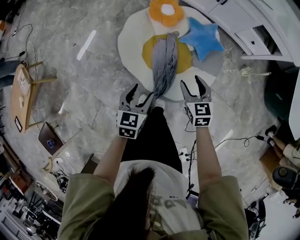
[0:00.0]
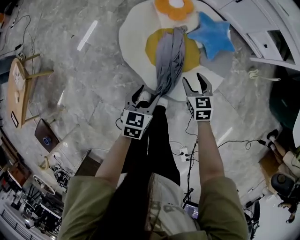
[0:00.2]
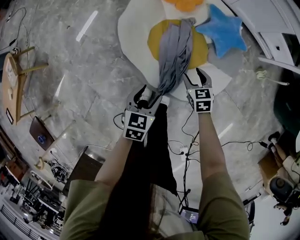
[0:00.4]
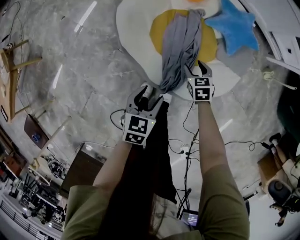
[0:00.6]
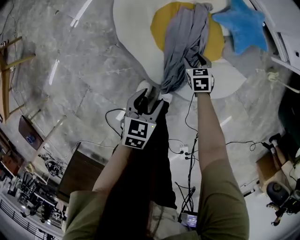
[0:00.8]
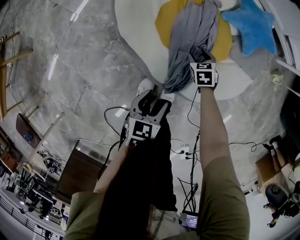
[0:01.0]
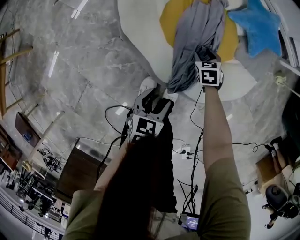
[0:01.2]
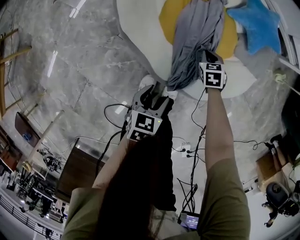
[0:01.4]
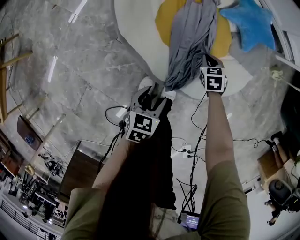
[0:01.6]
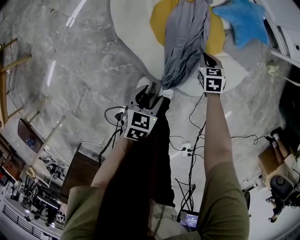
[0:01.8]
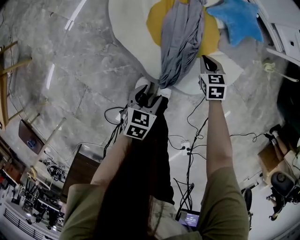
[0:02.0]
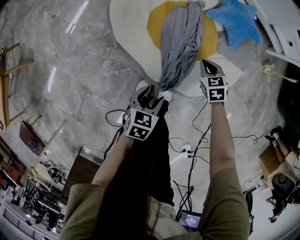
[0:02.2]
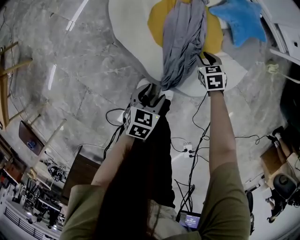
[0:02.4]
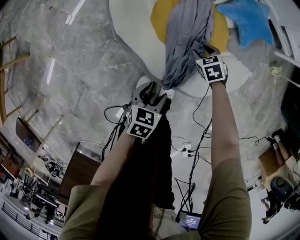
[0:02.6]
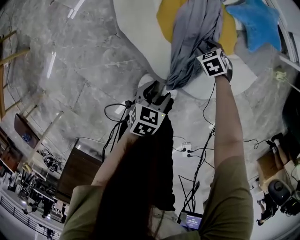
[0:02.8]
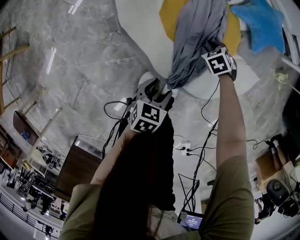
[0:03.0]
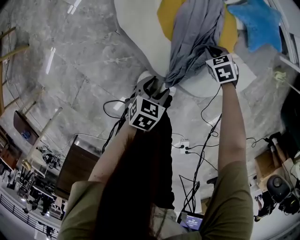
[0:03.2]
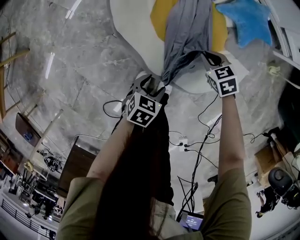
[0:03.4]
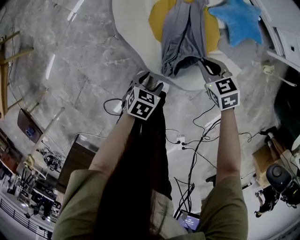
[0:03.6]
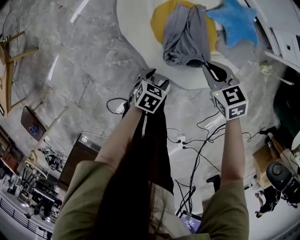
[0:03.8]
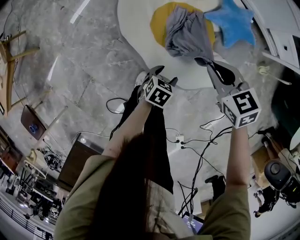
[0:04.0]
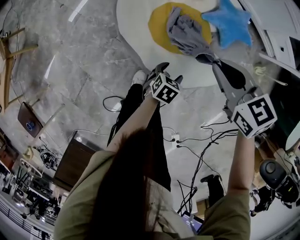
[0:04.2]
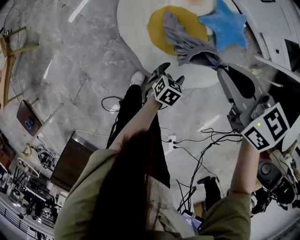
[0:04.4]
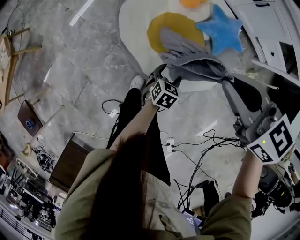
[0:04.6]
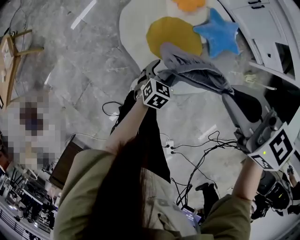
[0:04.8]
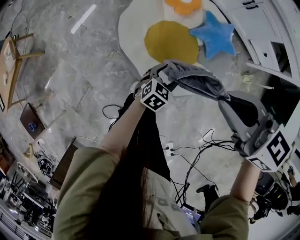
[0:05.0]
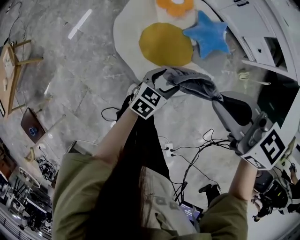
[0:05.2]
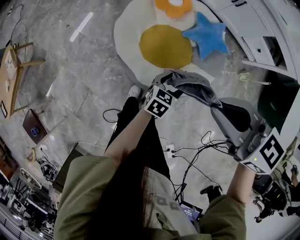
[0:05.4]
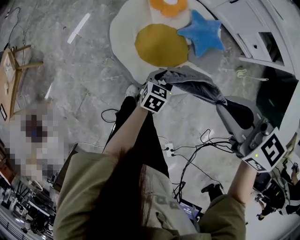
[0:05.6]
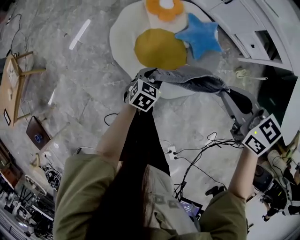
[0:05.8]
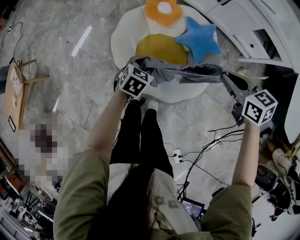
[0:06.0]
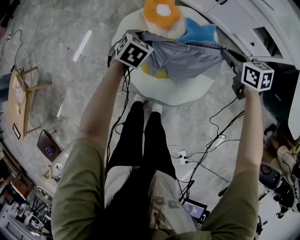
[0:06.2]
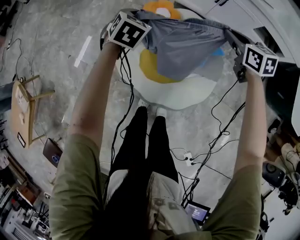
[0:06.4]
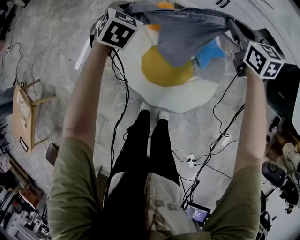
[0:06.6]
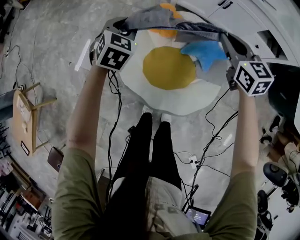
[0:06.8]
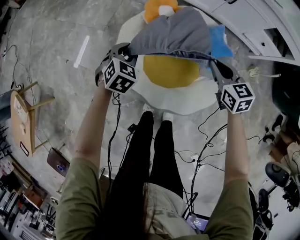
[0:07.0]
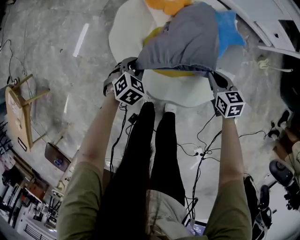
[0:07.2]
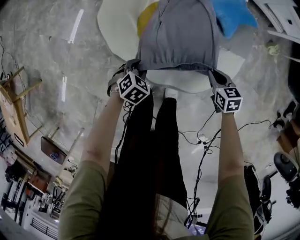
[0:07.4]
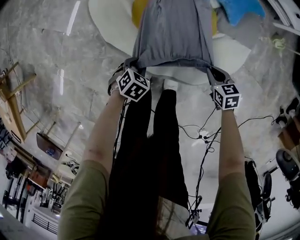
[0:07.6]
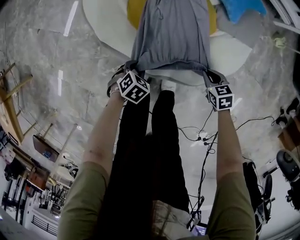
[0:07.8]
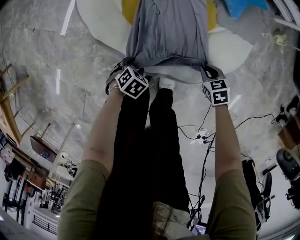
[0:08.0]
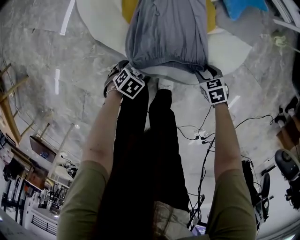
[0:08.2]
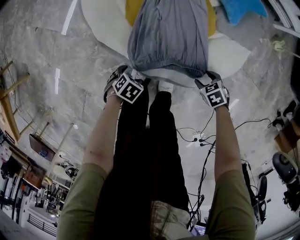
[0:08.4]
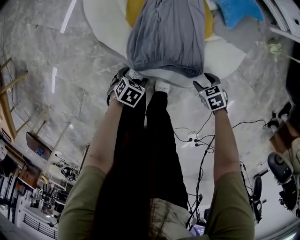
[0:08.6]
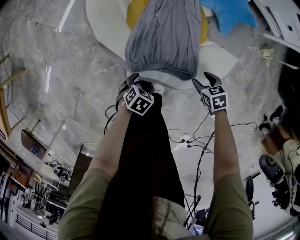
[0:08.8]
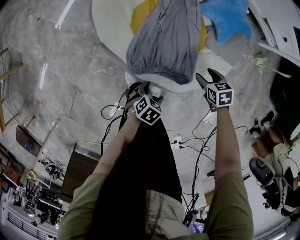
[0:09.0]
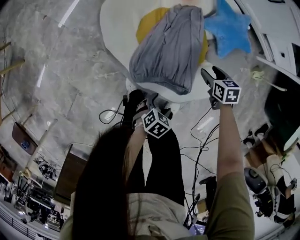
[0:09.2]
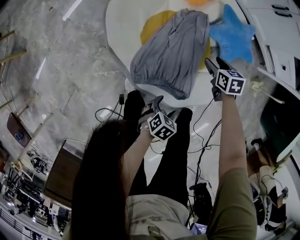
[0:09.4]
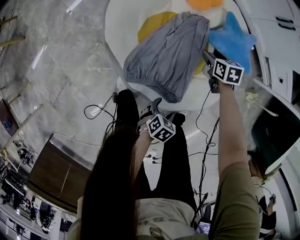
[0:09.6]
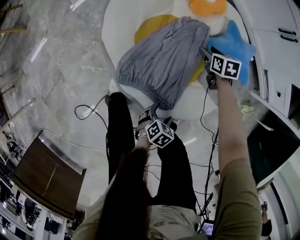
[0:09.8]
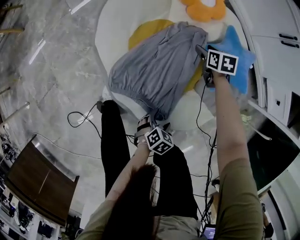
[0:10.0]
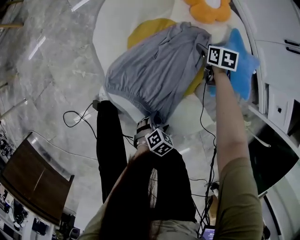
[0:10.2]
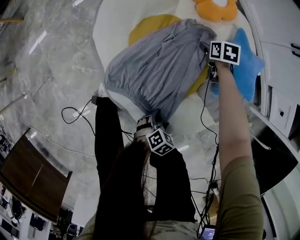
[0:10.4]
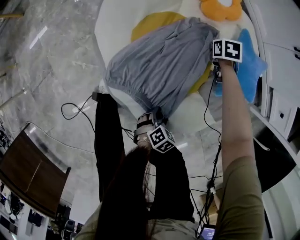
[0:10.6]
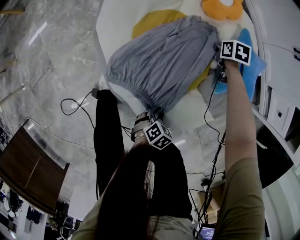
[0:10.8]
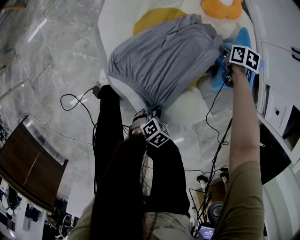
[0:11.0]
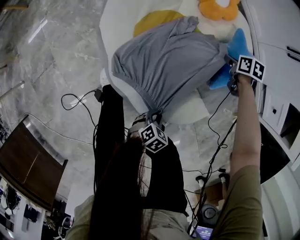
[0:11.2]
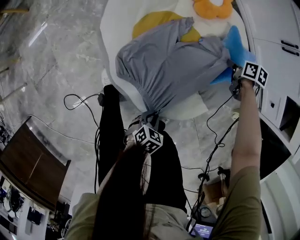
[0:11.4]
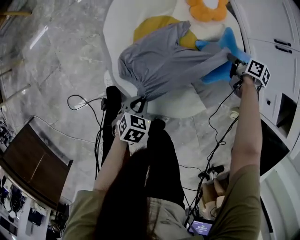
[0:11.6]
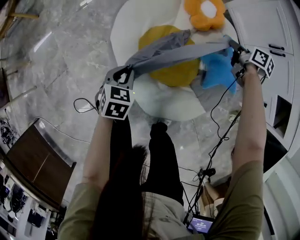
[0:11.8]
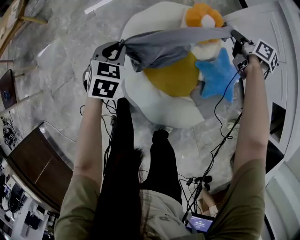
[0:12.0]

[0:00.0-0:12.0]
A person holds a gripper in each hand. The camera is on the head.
0:00.0 to 0:01.6: The two grippers go some 35 cm downward. The right gripper swivels approximately 30 degrees, and closes its fingers.
0:01.6 to 0:03.0: The right gripper ends up approximately 5 cm from where it was, and turns by approximately 30 degrees; the left gripper shifts by roughly 5 cm.
0:03.0 to 0:04.4: The left gripper changes place by about 20 cm; the right gripper is displaced upward by approximately 50 cm, and points its fingers roughly 40 degrees further upward.
0:04.4 to 0:06.0: The right gripper shifts approximately 15 cm to the right; the left gripper heads upward and forward, covering roughly 20 cm, and closes its fingers.
0:06.0 to 0:07.6: The right gripper goes up and down, roughly 50 cm each way, reversing 2 times; the left gripper is displaced downward by some 35 cm, and turns by approximately 30 degrees.
0:07.6 to 0:09.0: The right gripper travels downward and back again, approximately 10 cm each way, and opens. Meanwhile the left gripper goes downward and returns, some 5 cm each way, turns by roughly 20 degrees, and opens.
0:09.0 to 0:10.4: The right gripper changes place by about 35 cm; the left gripper shifts by some 20 cm, and swivels some 20 degrees.
0:10.4 to 0:12.0: The right gripper travels upward by about 35 cm, tilts its fingers approximately 30 degrees upward, and closes; the left gripper shifts by approximately 60 cm, swivels about 40 degrees, and closes its fingers.

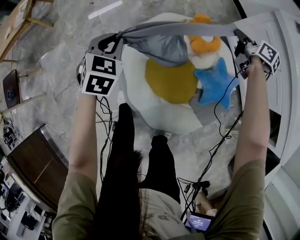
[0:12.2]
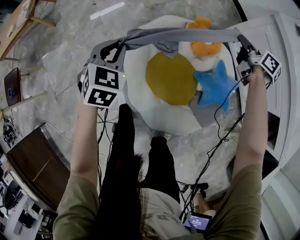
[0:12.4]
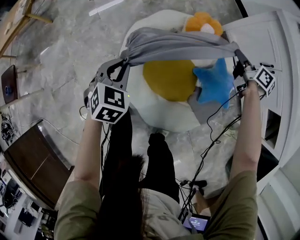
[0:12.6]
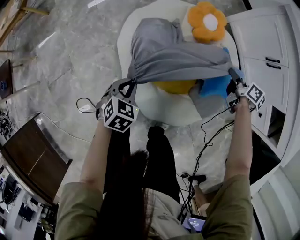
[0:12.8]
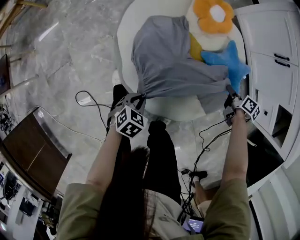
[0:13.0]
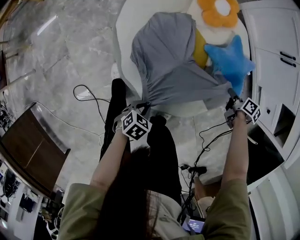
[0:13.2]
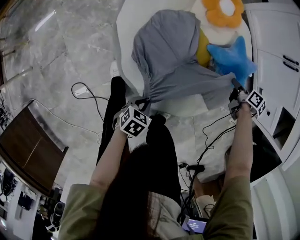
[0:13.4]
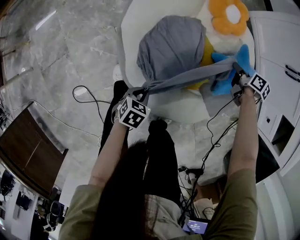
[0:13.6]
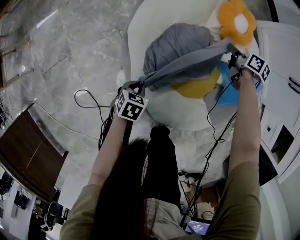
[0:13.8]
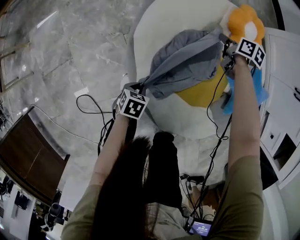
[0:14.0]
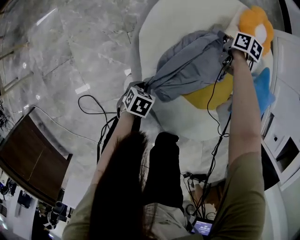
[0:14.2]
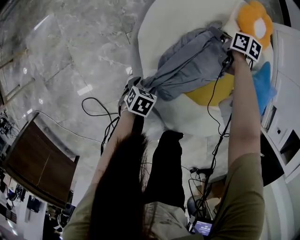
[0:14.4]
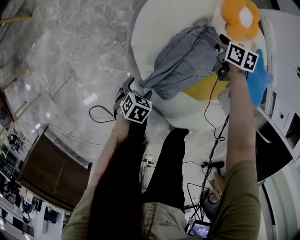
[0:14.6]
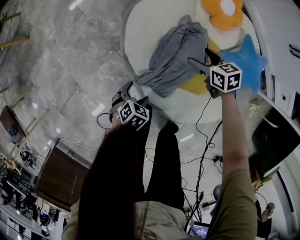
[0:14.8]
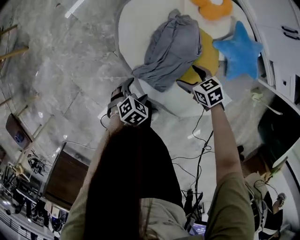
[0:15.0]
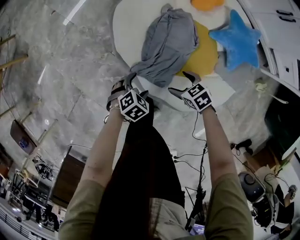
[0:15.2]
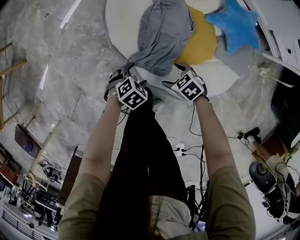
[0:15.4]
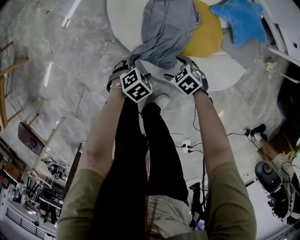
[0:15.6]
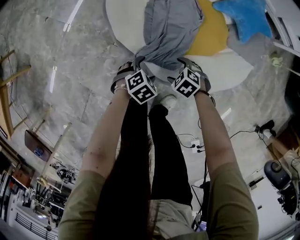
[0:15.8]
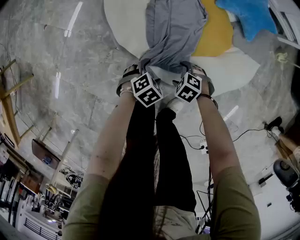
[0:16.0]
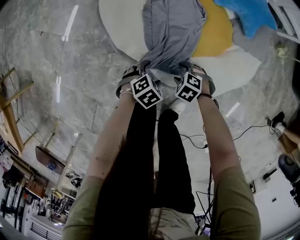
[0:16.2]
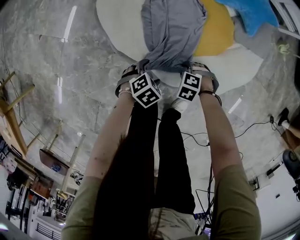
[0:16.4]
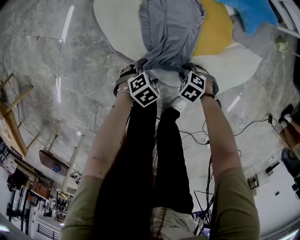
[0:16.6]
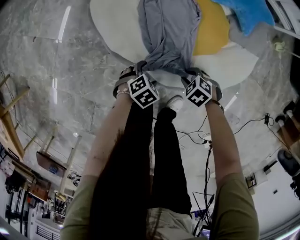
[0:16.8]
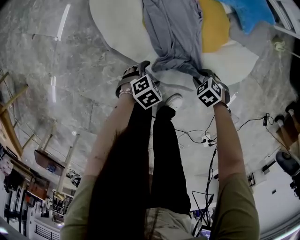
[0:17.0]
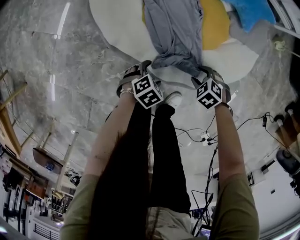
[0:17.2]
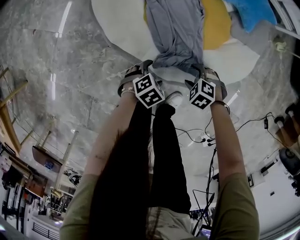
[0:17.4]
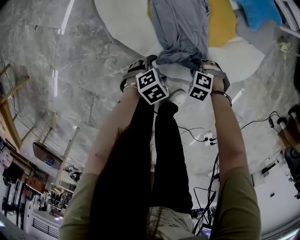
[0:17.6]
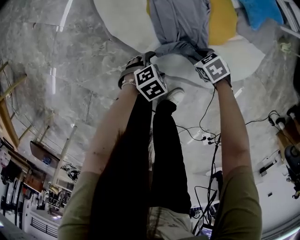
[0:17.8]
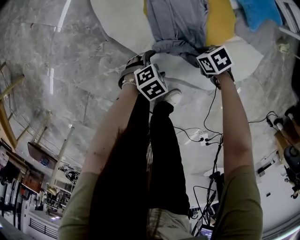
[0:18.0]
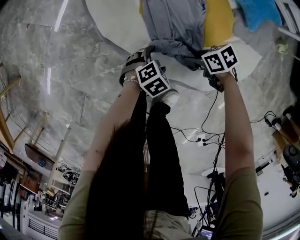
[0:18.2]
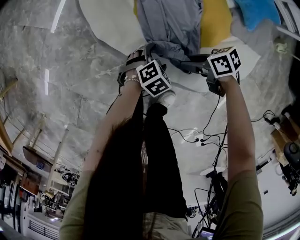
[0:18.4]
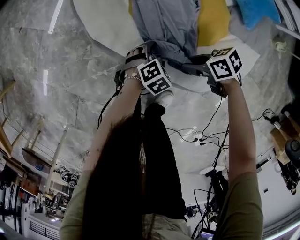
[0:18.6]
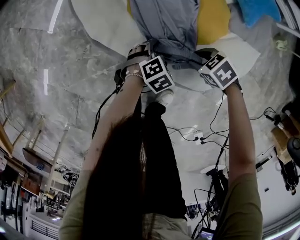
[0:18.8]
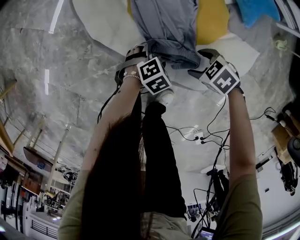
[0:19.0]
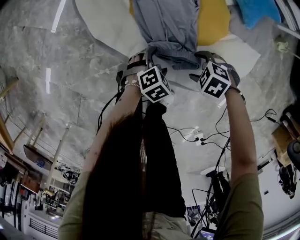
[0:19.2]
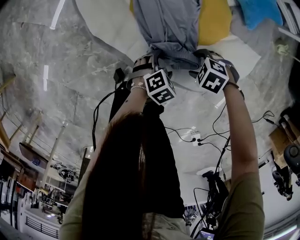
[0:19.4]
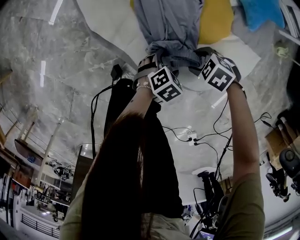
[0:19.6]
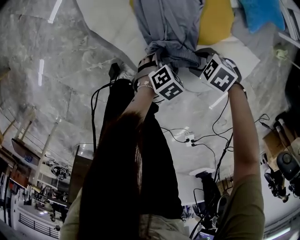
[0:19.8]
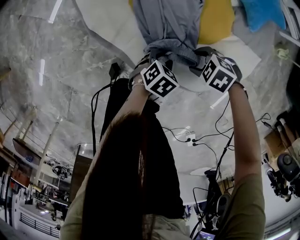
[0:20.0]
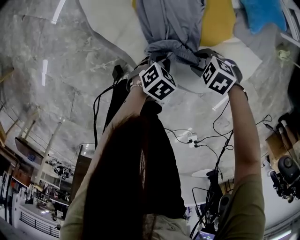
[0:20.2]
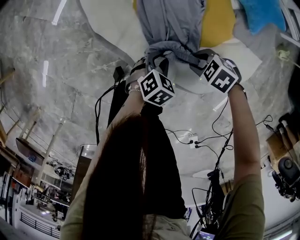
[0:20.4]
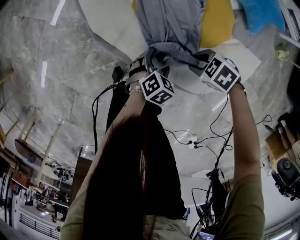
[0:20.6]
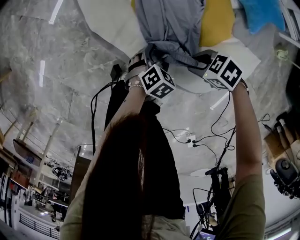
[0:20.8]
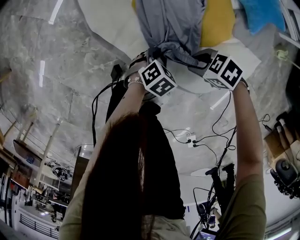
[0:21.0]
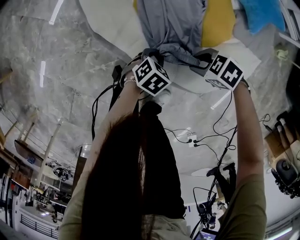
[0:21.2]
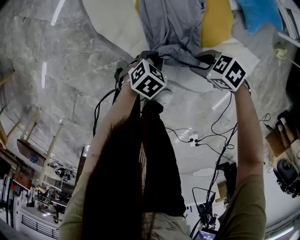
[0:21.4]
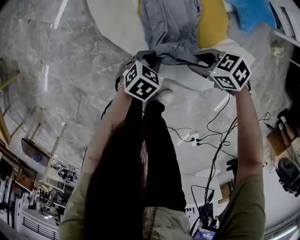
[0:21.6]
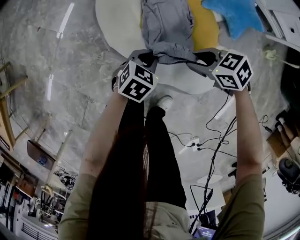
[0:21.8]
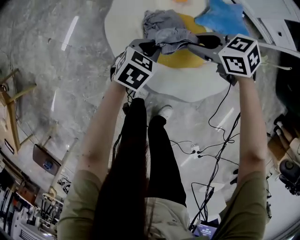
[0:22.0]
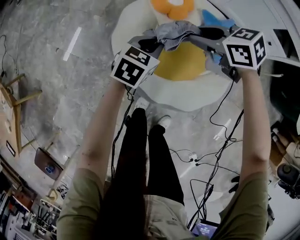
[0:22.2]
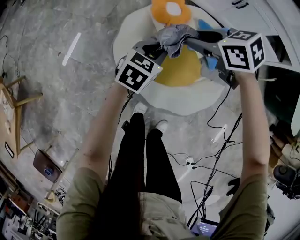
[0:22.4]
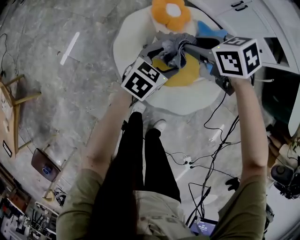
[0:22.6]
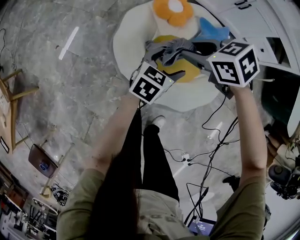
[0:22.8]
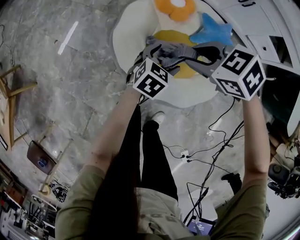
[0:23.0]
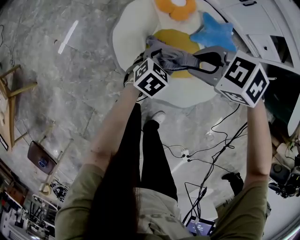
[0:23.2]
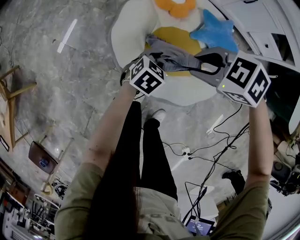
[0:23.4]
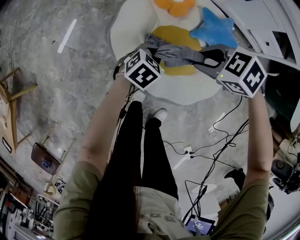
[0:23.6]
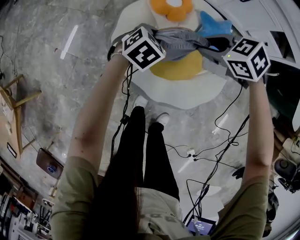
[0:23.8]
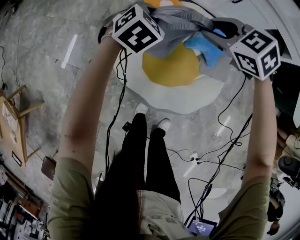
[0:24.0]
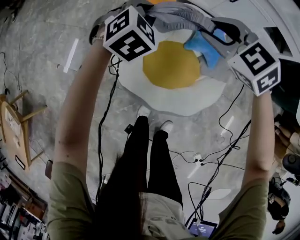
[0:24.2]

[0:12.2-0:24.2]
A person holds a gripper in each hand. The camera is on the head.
0:12.2 to 0:13.8: The grippers both shift downward by roughly 30 cm. The right gripper rotates about 20 degrees, while the left gripper turns by roughly 40 degrees.
0:13.8 to 0:15.2: The left gripper reaches roughly 10 cm downward, then returns, rolls clockwise, seen from behind, by approximately 50 degrees, and opens up. The right gripper reaches some 10 cm downward, then returns, rotates some 40 degrees, and opens its fingers.
0:15.2 to 0:16.6: The grippers both shift downward by roughly 10 cm. The right gripper turns by about 20 degrees, and closes. The left gripper rotates about 20 degrees.
0:16.6 to 0:18.2: The right gripper ends up about 5 cm from where it was, turns by some 50 degrees, and opens and closes again. Meanwhile the left gripper moves approximately 5 cm.
0:18.2 to 0:19.8: The right gripper shifts by roughly 5 cm, and twists approximately 40 degrees counterclockwise, seen from behind. The left gripper changes place by approximately 10 cm.
0:19.8 to 0:21.2: The left gripper shifts by some 5 cm, and closes its fingers.
0:21.2 to 0:22.6: The two grippers go approximately 40 cm upward. The right gripper changes its angle by some 40 degrees; the left gripper rotates about 30 degrees, and opens its fingers.
0:22.6 to 0:24.2: The right gripper changes place by some 10 cm, and changes its angle by roughly 30 degrees, while the left gripper ends up some 20 cm from where it was, turns by about 40 degrees, and closes its fingers.
